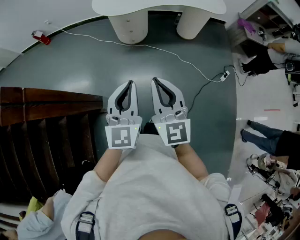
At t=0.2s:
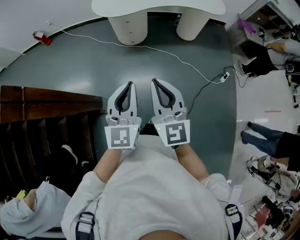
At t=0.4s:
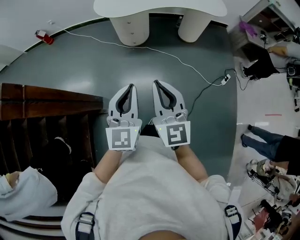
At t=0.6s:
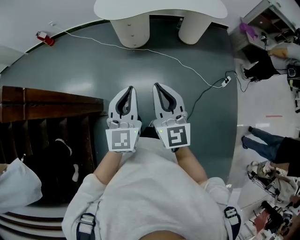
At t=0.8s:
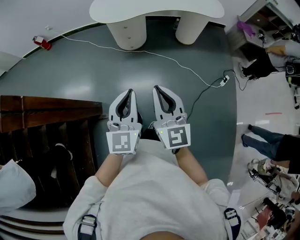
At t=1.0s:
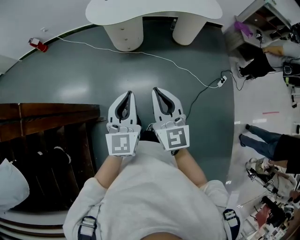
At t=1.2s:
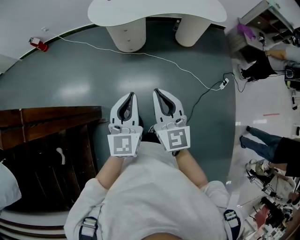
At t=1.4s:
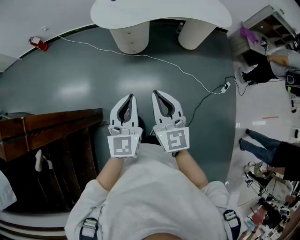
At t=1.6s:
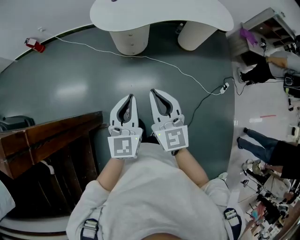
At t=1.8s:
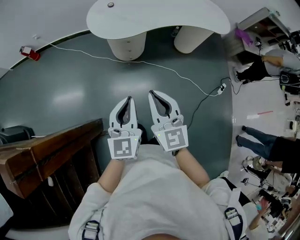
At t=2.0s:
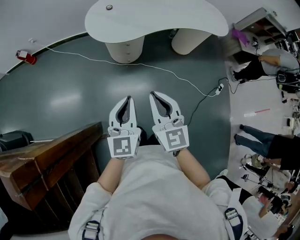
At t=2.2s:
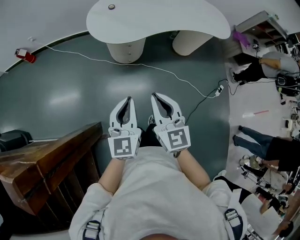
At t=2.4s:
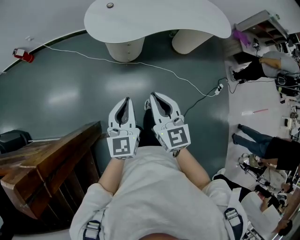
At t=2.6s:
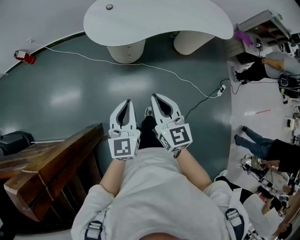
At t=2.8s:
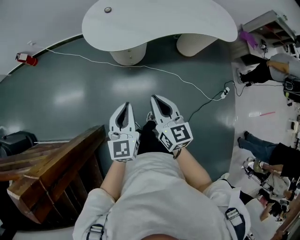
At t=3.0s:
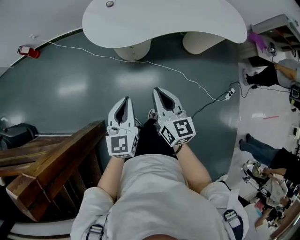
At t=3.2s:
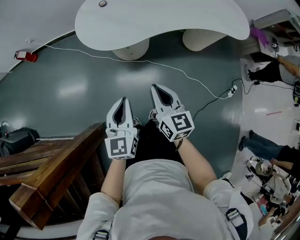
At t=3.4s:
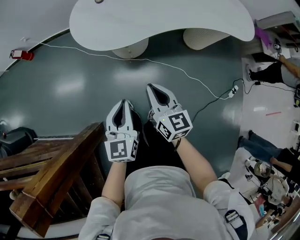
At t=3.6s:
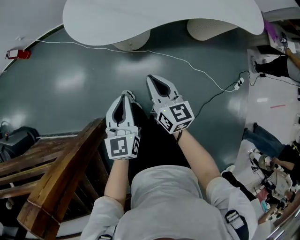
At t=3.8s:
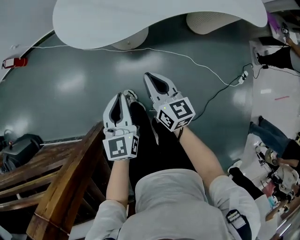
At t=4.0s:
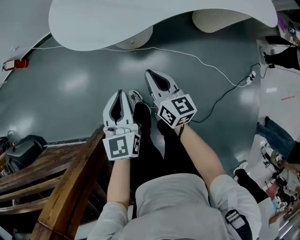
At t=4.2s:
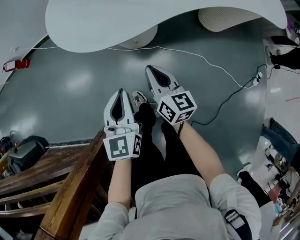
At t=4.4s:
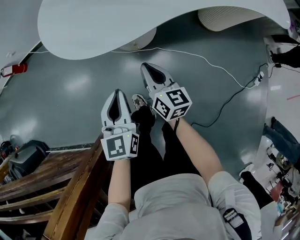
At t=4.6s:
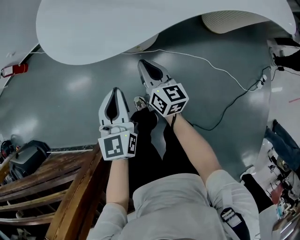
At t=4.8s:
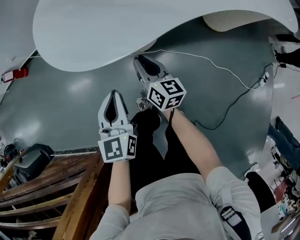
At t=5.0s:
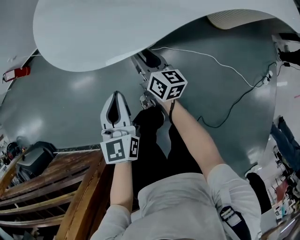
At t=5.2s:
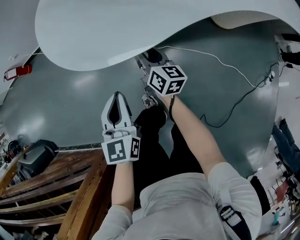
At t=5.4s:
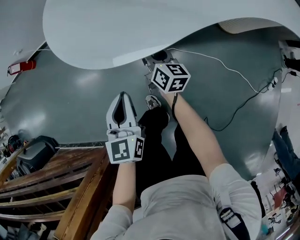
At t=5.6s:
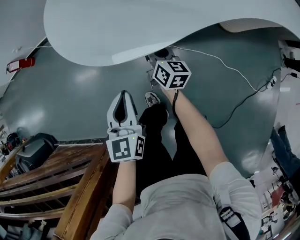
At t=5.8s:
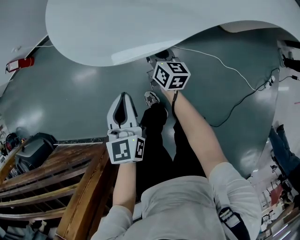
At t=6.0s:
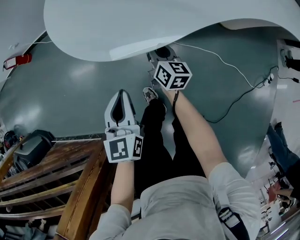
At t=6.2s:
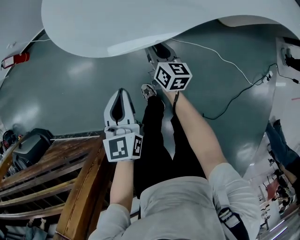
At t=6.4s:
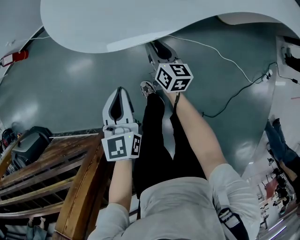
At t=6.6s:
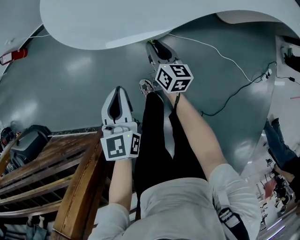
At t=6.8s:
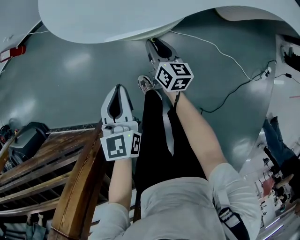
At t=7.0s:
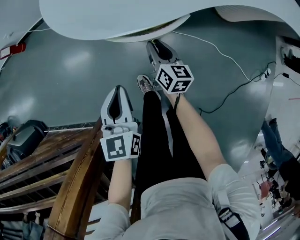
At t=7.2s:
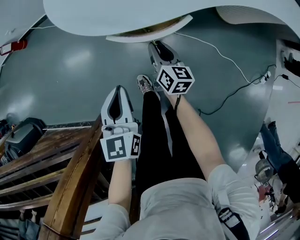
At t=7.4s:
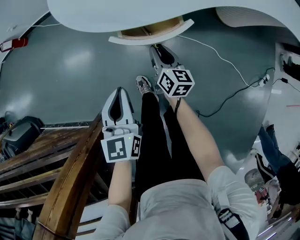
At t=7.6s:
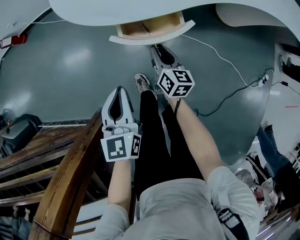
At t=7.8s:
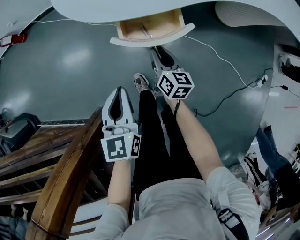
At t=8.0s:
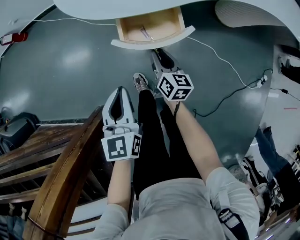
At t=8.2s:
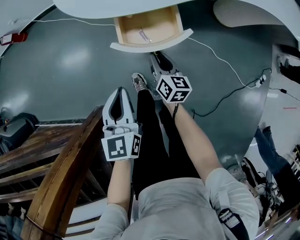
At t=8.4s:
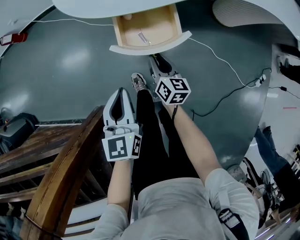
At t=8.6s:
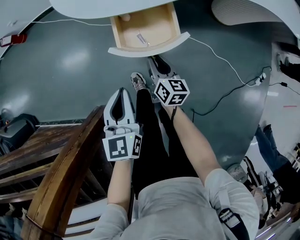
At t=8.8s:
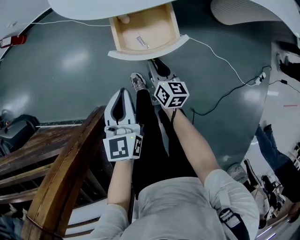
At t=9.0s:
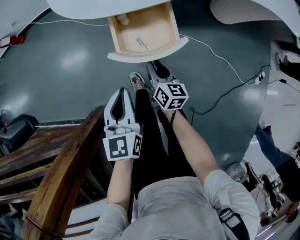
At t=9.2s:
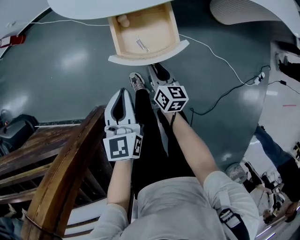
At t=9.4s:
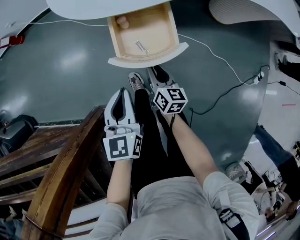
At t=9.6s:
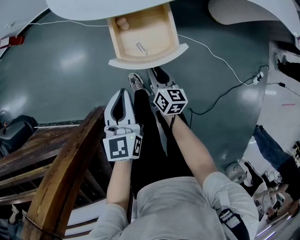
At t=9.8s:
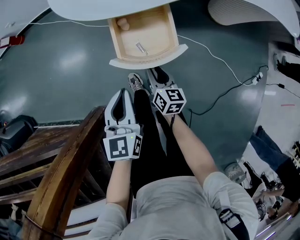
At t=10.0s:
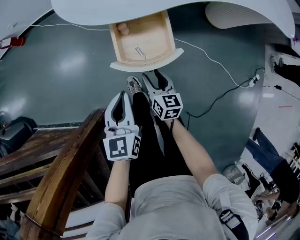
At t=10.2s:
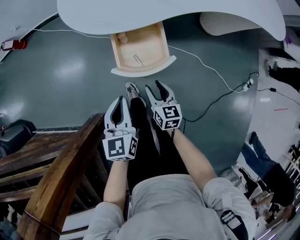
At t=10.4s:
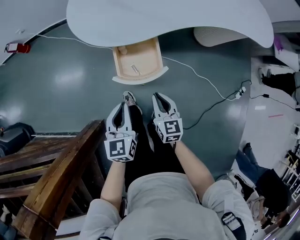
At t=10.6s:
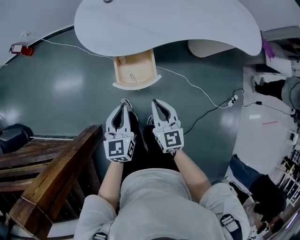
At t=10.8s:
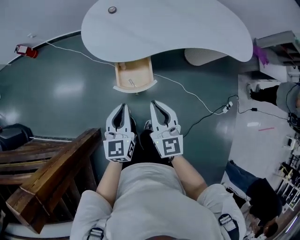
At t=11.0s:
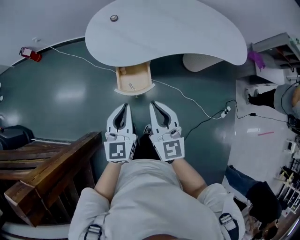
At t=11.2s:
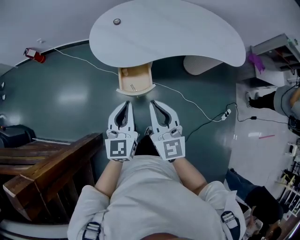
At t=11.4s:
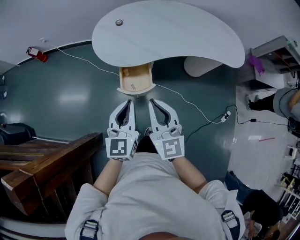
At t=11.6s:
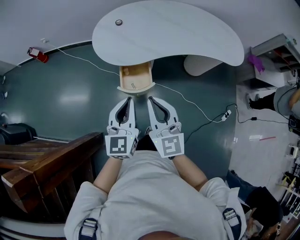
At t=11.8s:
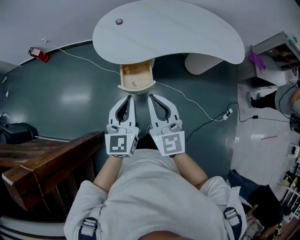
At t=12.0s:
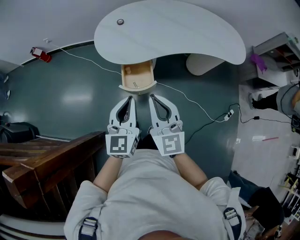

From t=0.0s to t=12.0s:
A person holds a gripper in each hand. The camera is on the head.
From t=0.0s to t=1.6s: Both grippers travel together forward, some 15 cm.
From t=1.6s to t=3.0s: The grippers both shift forward and downward by about 20 cm. The right gripper swivels roughly 20 degrees.
From t=3.0s to t=4.4s: The two grippers go roughly 35 cm downward and forward.
From t=4.4s to t=6.0s: The left gripper travels to the left by about 5 cm, while the right gripper is displaced forward and downward by some 15 cm, and opens.
From t=6.0s to t=7.6s: Both grippers travel together backward, about 10 cm.
From t=7.6s to t=9.0s: The right gripper travels backward by about 10 cm, while the left gripper moves approximately 5 cm.
From t=9.0s to t=10.4s: The left gripper shifts approximately 5 cm upward. The right gripper moves upward and backward, about 15 cm, changes its angle by some 20 degrees, and opens, then closes once more.
From t=10.4s to t=12.0s: Both grippers move upward, some 30 cm. The left gripper changes its angle by some 20 degrees. The right gripper rotates roughly 30 degrees.

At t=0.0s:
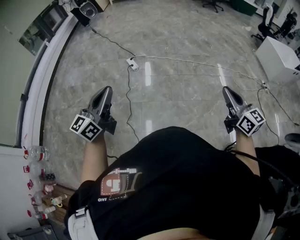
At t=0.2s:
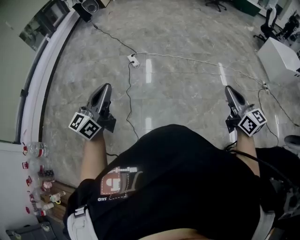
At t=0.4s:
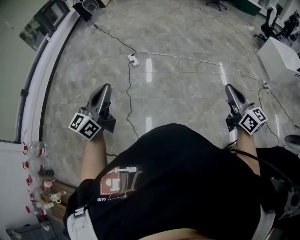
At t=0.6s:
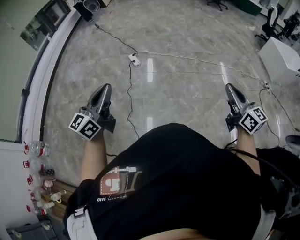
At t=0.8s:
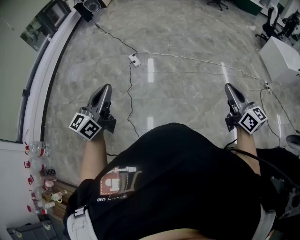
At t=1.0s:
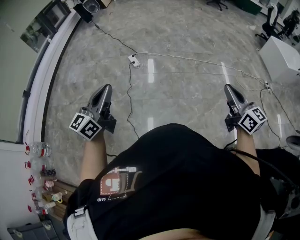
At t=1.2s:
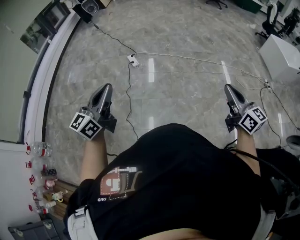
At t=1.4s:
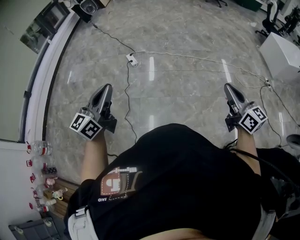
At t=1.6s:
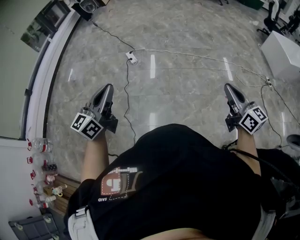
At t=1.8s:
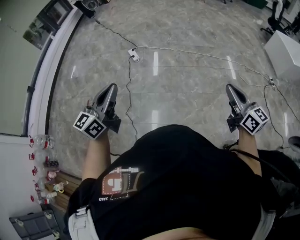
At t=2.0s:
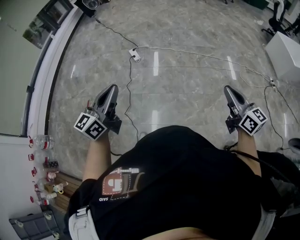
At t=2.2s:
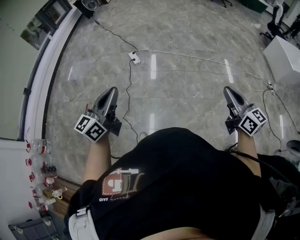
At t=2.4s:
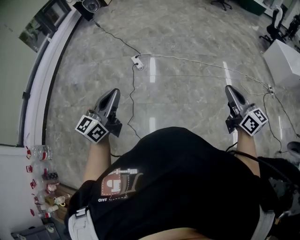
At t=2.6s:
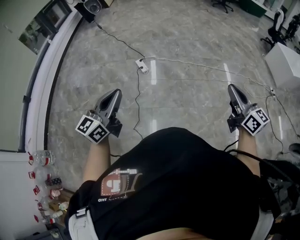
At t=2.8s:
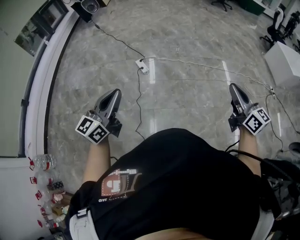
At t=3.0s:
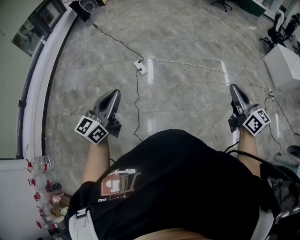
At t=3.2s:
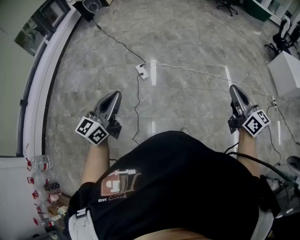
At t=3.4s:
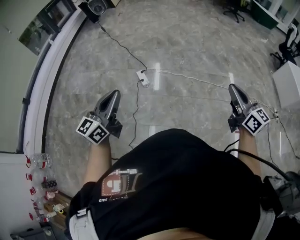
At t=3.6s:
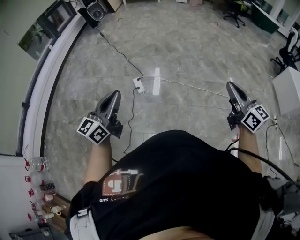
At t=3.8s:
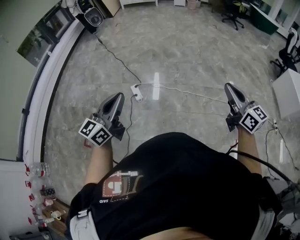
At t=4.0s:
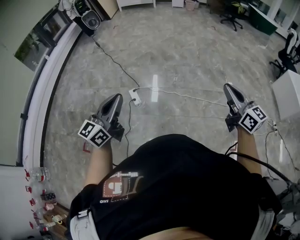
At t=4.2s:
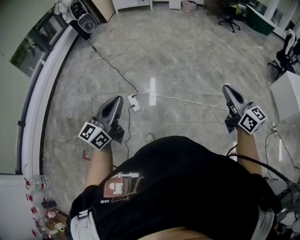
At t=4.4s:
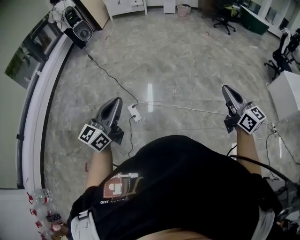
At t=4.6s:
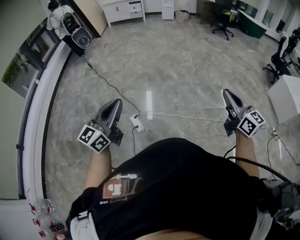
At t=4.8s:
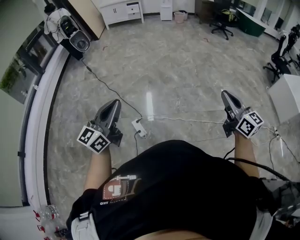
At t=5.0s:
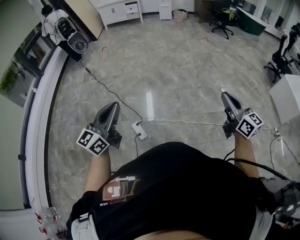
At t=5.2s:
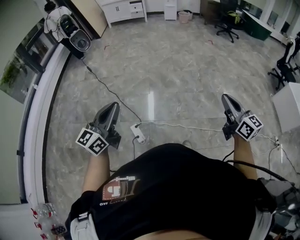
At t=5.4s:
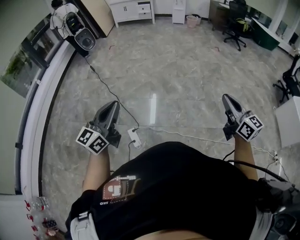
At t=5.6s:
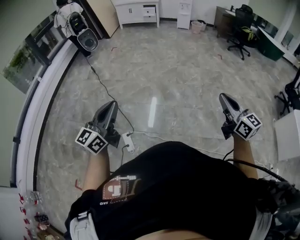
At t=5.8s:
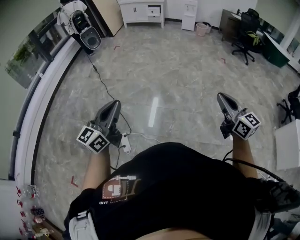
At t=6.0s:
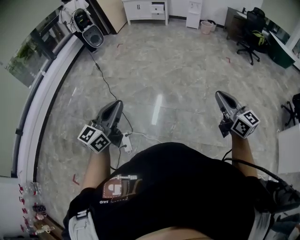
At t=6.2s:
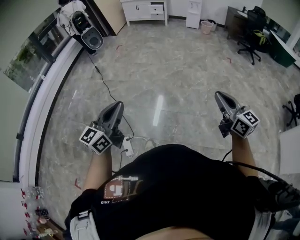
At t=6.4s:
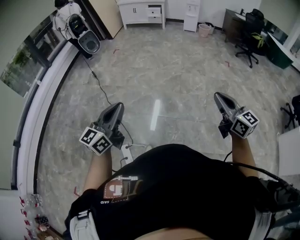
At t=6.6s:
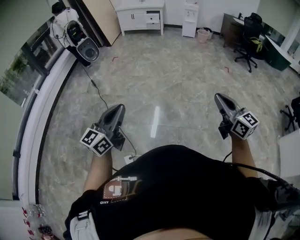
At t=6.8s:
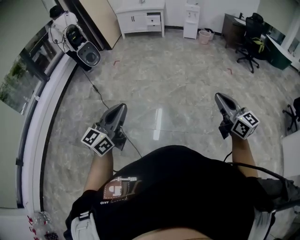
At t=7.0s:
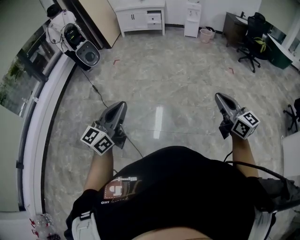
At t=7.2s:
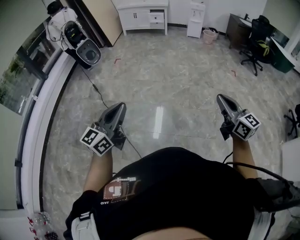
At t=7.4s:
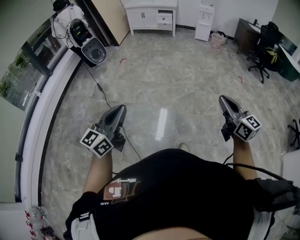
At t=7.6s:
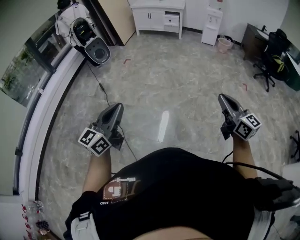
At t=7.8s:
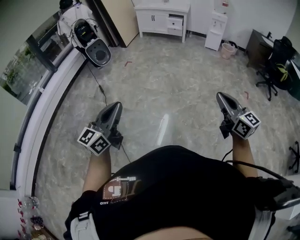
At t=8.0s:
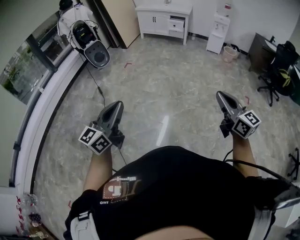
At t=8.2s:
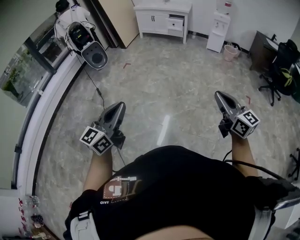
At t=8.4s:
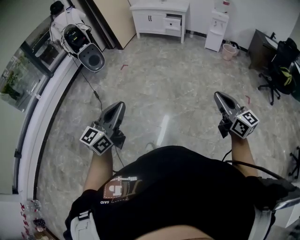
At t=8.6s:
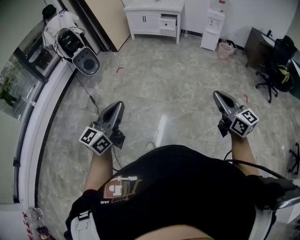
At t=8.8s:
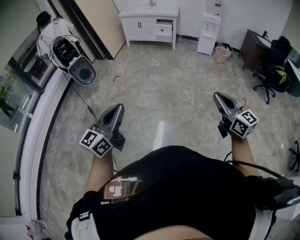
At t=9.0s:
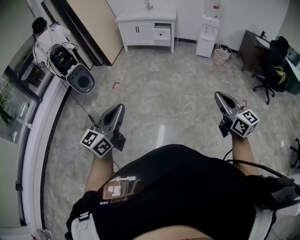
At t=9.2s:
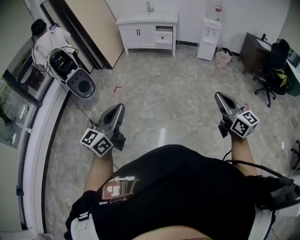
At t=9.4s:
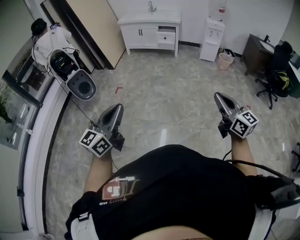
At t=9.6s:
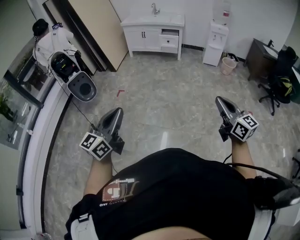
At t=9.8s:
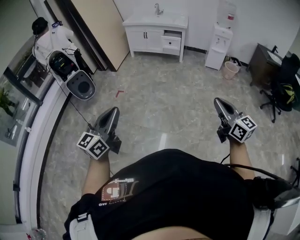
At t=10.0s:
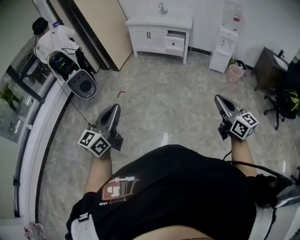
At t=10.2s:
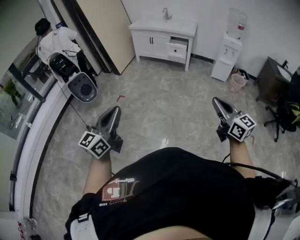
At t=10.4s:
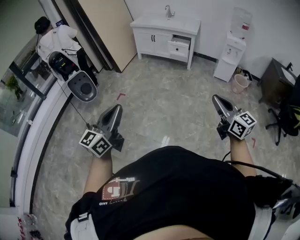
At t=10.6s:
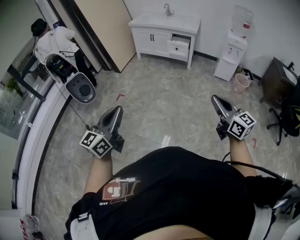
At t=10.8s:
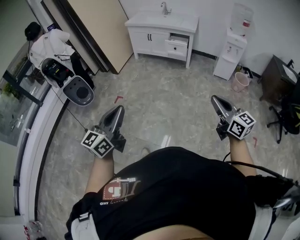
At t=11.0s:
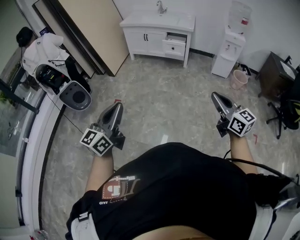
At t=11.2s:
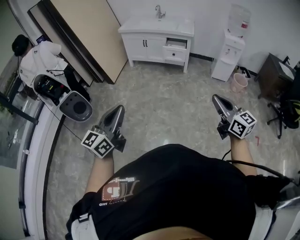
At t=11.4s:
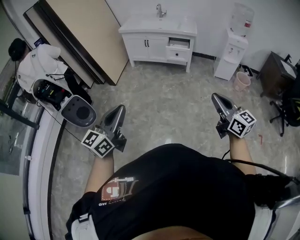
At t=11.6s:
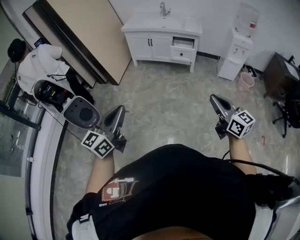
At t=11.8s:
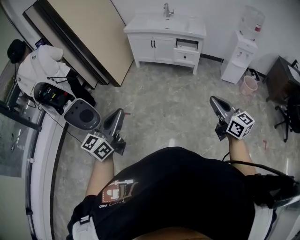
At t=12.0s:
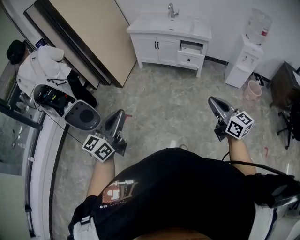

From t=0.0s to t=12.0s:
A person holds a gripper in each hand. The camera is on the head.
From t=0.0s to t=1.6s: The two grippers go approximately 10 cm to the right.
From t=1.6s to t=3.0s: Both grippers move to the left and forward, about 35 cm.
From t=3.0s to t=4.4s: The two grippers travel together, forward, roughly 50 cm.
From t=4.4s to t=6.0s: The two grippers travel together, forward, some 50 cm.
From t=6.0s to t=7.6s: The two grippers travel together, forward, about 50 cm.
From t=7.6s to t=9.0s: Both grippers are carried forward, some 40 cm.
From t=9.0s to t=10.4s: The grippers both shift forward by some 35 cm.
From t=10.4s to t=12.0s: The two grippers travel together, forward and to the left, some 40 cm.
